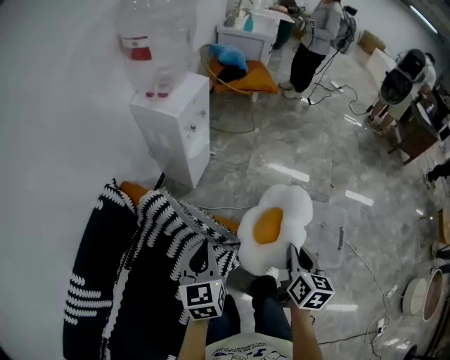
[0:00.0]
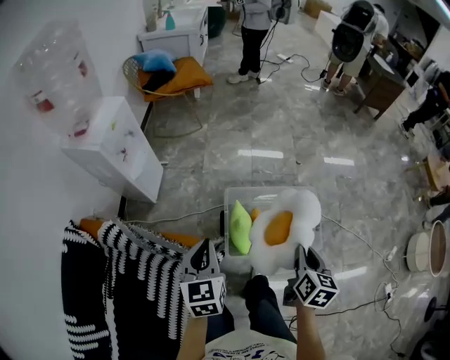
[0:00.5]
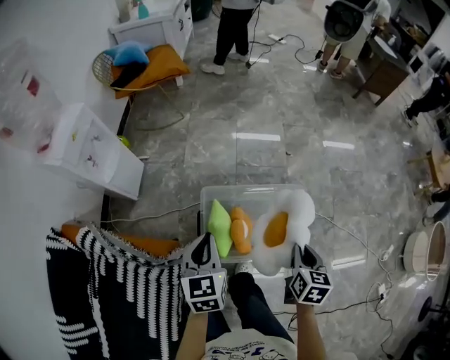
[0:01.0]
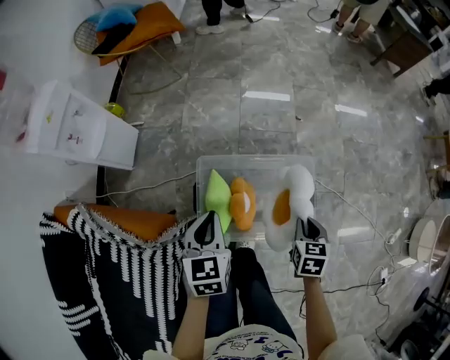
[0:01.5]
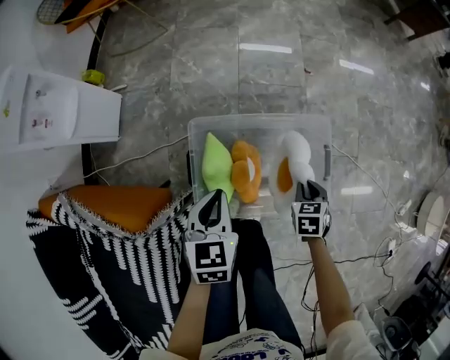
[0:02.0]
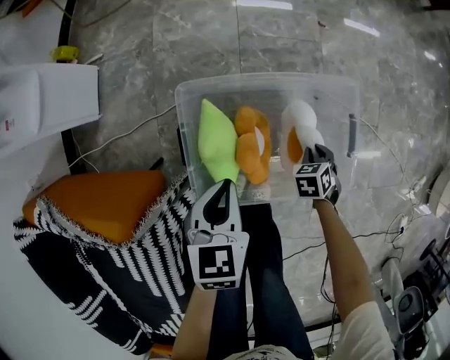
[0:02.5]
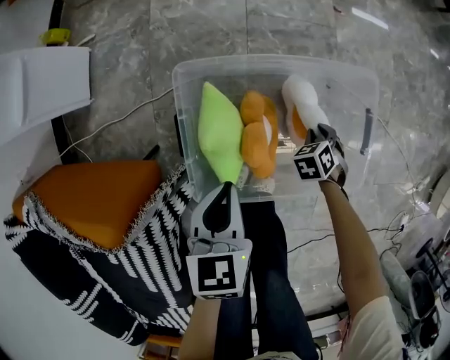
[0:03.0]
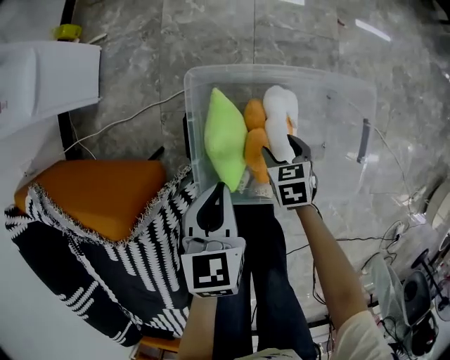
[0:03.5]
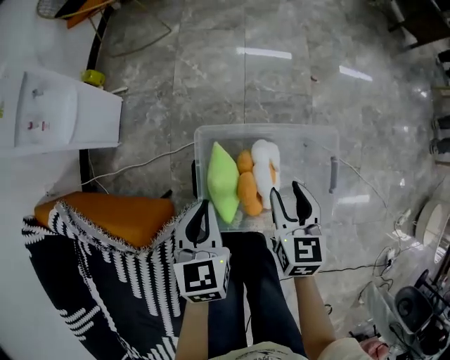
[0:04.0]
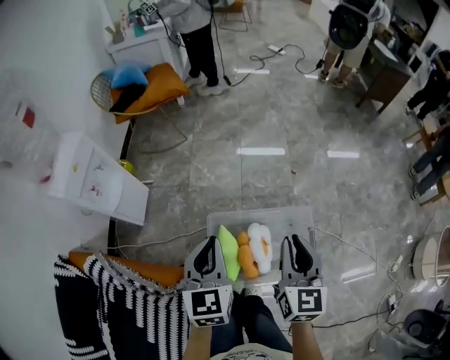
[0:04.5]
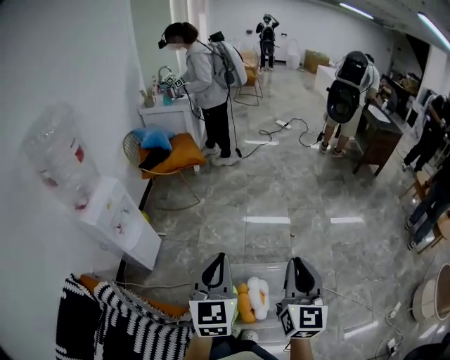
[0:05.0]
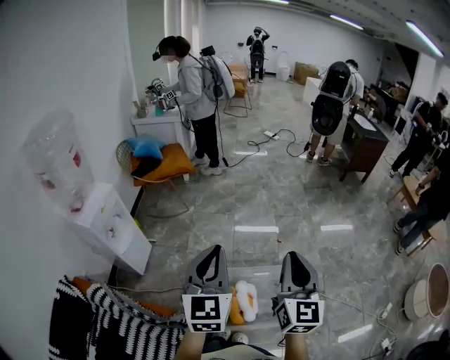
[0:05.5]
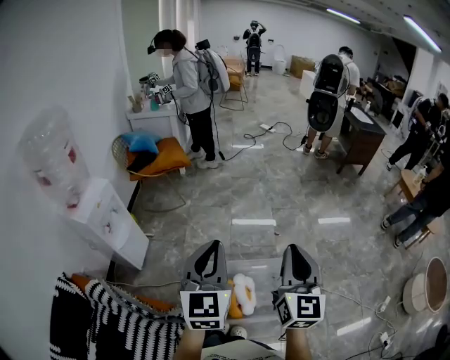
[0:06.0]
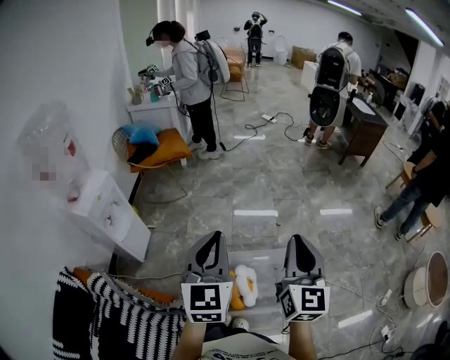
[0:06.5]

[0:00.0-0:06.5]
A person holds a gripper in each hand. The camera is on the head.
0:00.0 to 0:02.0: The pair of grippers is taken approximately 50 cm. The left gripper turns by some 30 degrees; the right gripper tilts its fingers about 40 degrees downward.
0:02.0 to 0:04.5: The left gripper is displaced upward by approximately 30 cm, and rotates about 20 degrees, while the right gripper goes about 40 cm upward, tilts its fingers approximately 50 degrees upward, and opens, then closes once more.
0:04.5 to 0:06.5: The two grippers go approximately 25 cm upward. The left gripper swivels approximately 20 degrees. Meanwhile the right gripper swivels approximately 20 degrees.

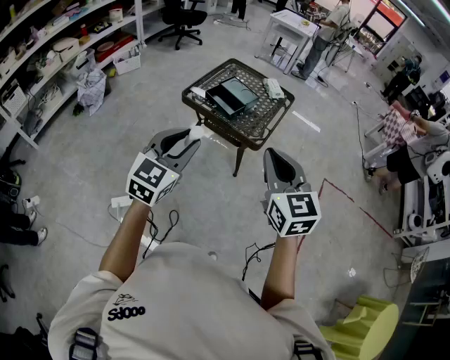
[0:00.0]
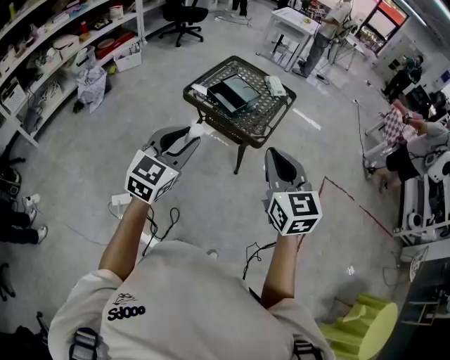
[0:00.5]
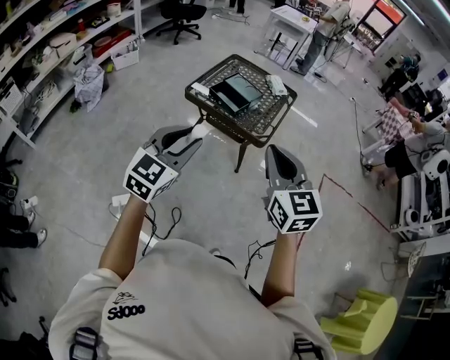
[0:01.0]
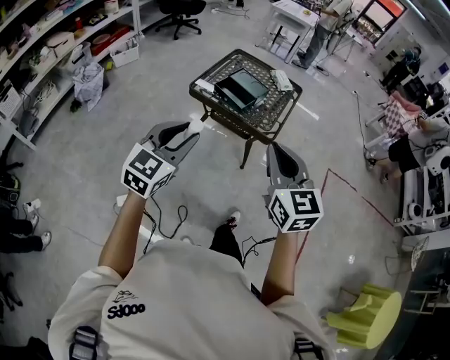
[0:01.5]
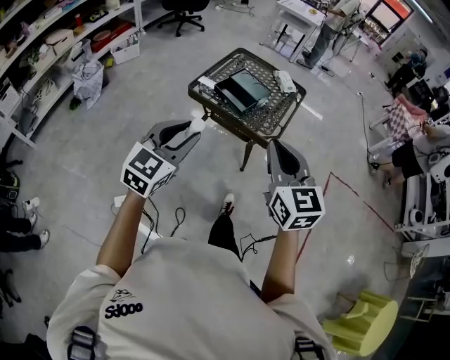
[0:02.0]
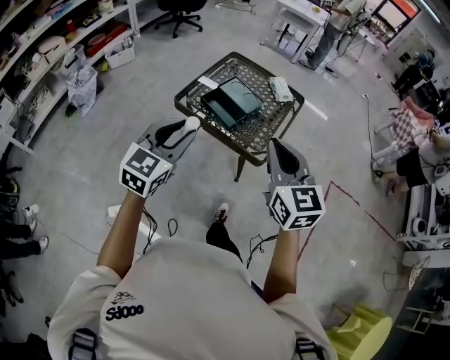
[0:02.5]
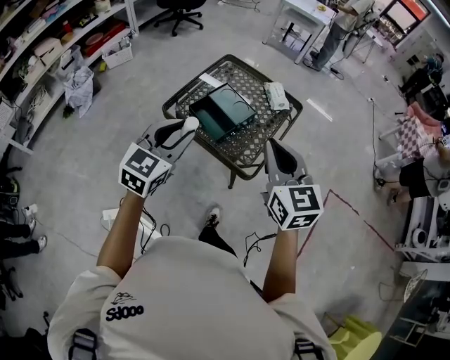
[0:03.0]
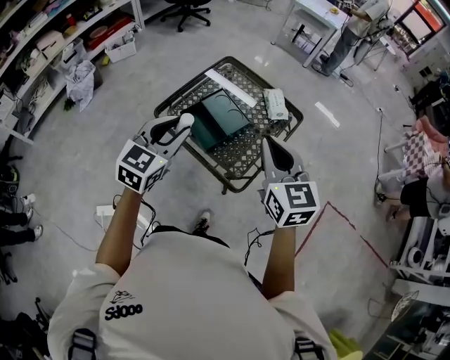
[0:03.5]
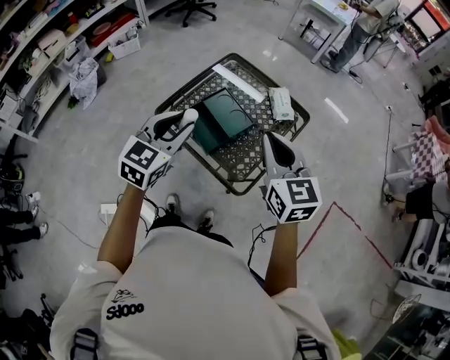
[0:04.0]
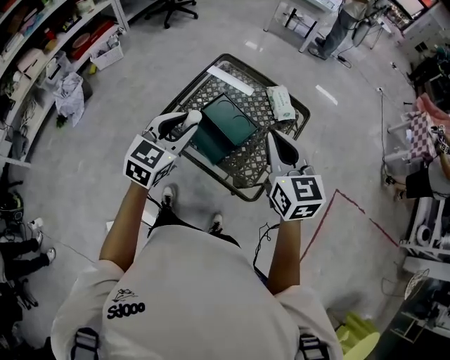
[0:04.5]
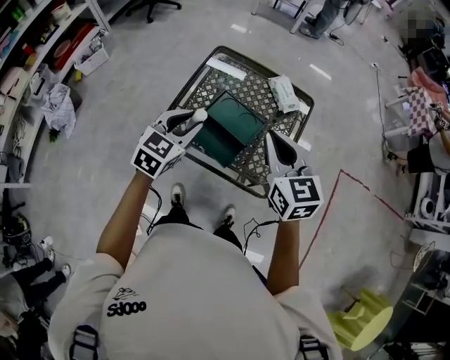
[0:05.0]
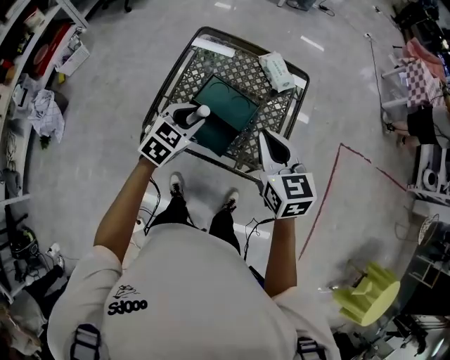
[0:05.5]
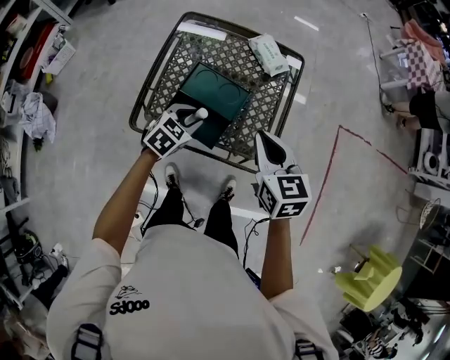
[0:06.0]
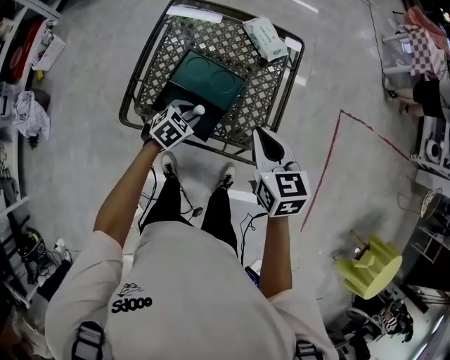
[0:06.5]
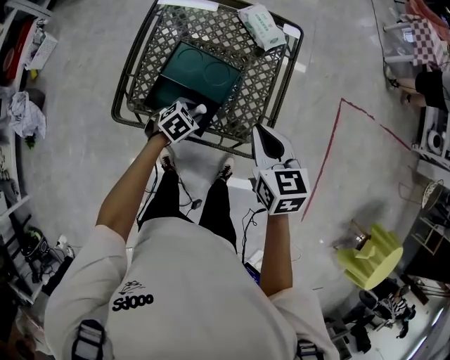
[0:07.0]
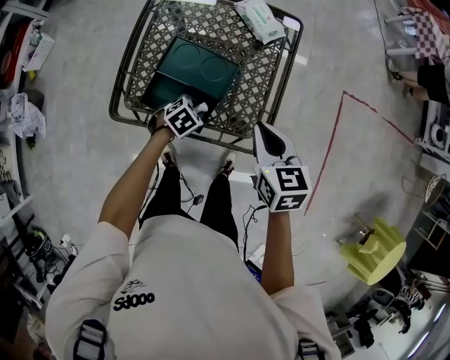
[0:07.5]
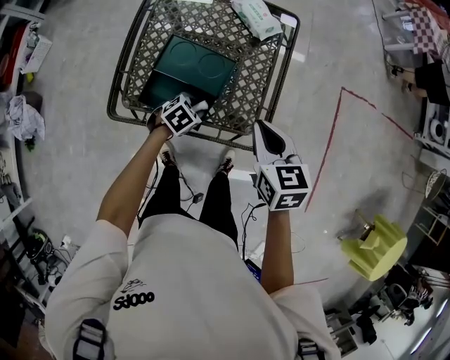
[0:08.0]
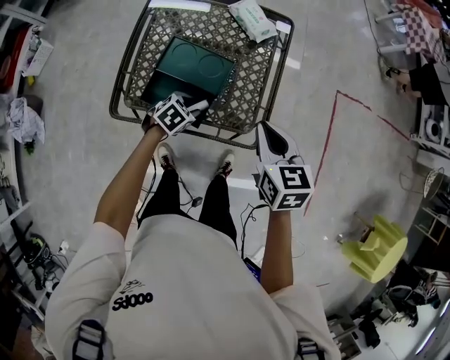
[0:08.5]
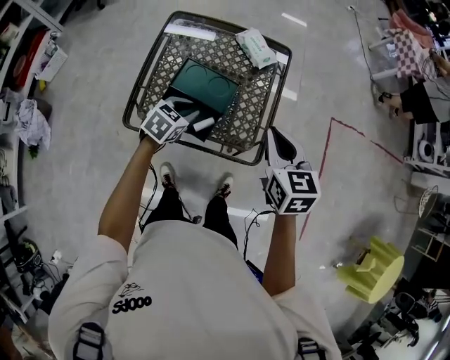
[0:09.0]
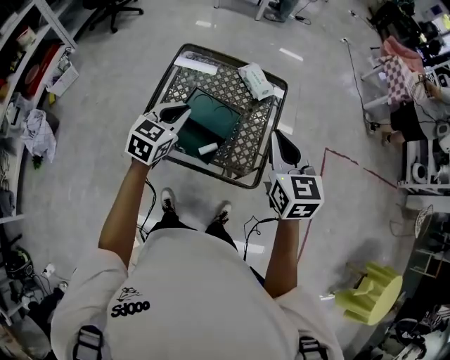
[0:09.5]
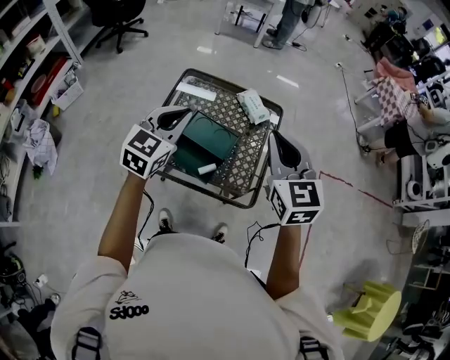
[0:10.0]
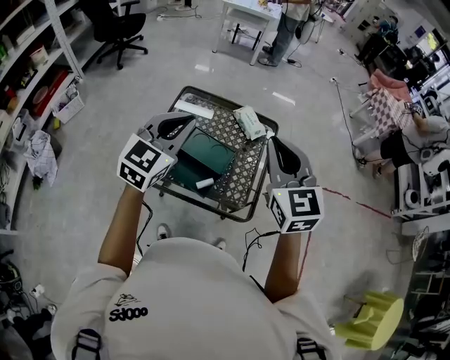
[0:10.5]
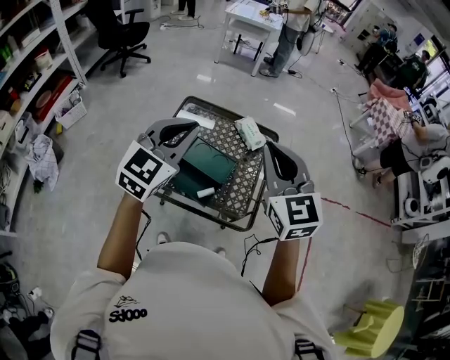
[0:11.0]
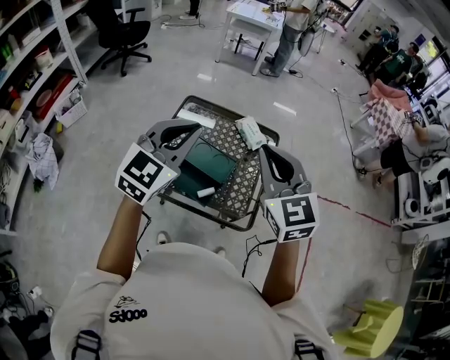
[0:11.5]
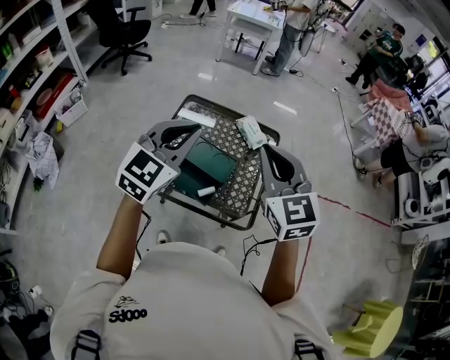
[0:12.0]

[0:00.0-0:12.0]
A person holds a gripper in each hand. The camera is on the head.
0:00.0 to 0:02.0: The left gripper moves to the left and forward, about 10 cm. Meanwhile the right gripper shifts approximately 10 cm forward and to the left.
0:02.0 to 0:04.0: The two grippers go approximately 35 cm forward and to the right.
0:04.0 to 0:06.0: The left gripper moves downward, about 25 cm, and changes its angle by some 50 degrees. Meanwhile the right gripper is displaced downward by roughly 15 cm, and swivels some 30 degrees.
0:06.0 to 0:08.0: The left gripper is displaced downward and to the right by roughly 15 cm, and swivels roughly 20 degrees. The right gripper shifts approximately 5 cm downward.
0:08.0 to 0:10.0: The right gripper heads upward, covering some 25 cm, and turns by about 30 degrees; the left gripper travels upward by some 40 cm, tilts its fingers approximately 50 degrees upward, and closes.
0:10.0 to 0:12.0: The left gripper shifts about 10 cm upward; the right gripper ends up approximately 5 cm from where it was.

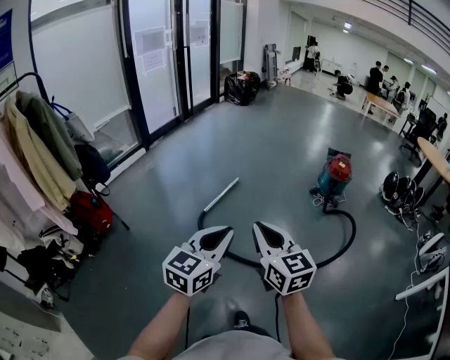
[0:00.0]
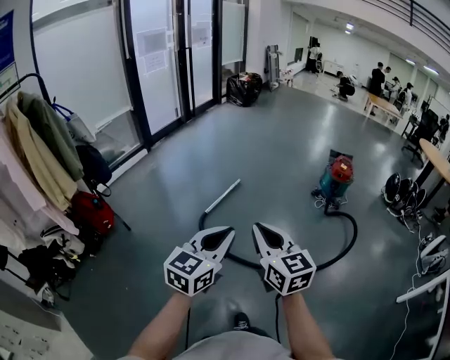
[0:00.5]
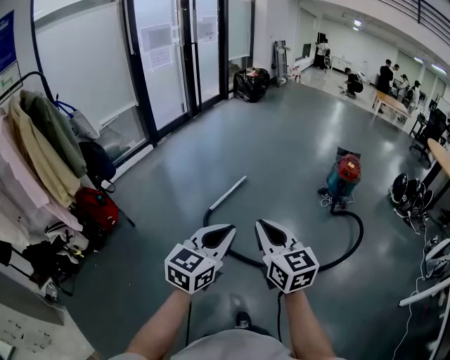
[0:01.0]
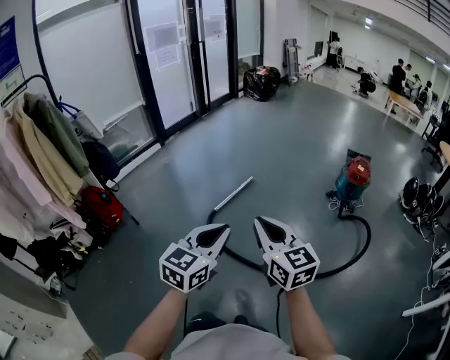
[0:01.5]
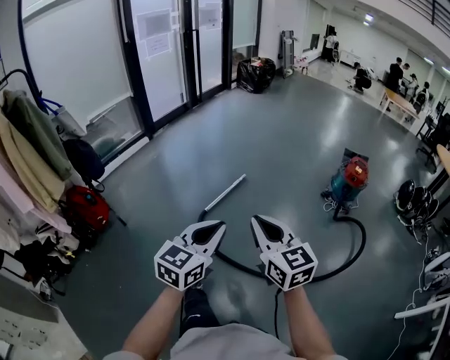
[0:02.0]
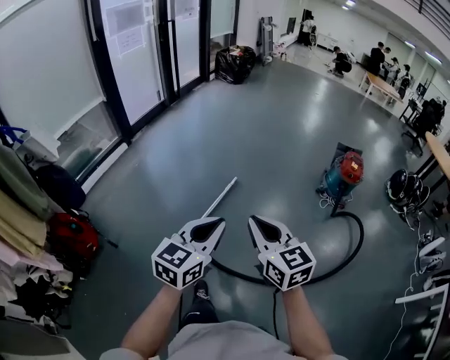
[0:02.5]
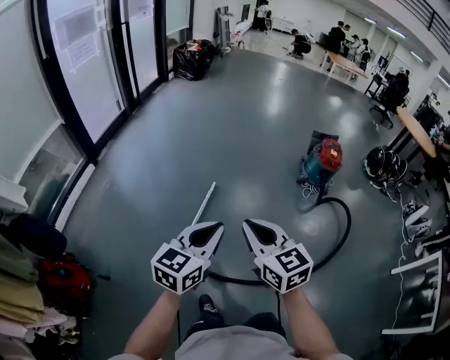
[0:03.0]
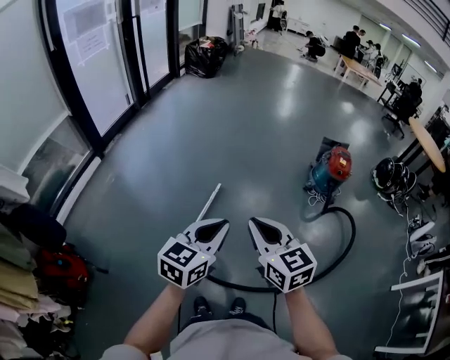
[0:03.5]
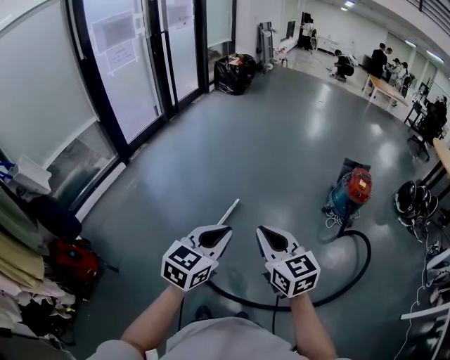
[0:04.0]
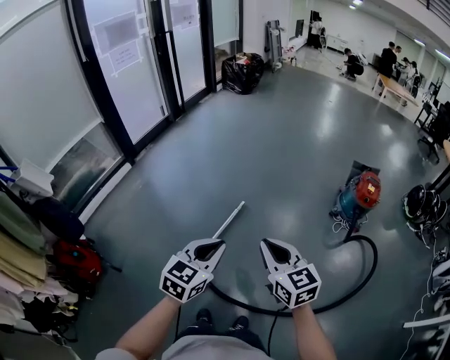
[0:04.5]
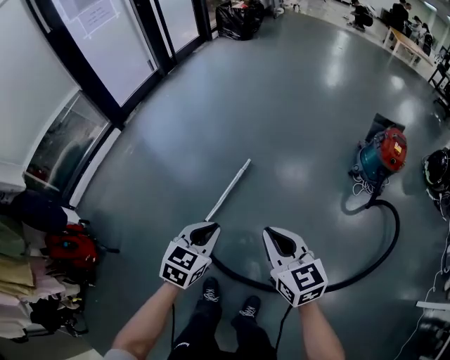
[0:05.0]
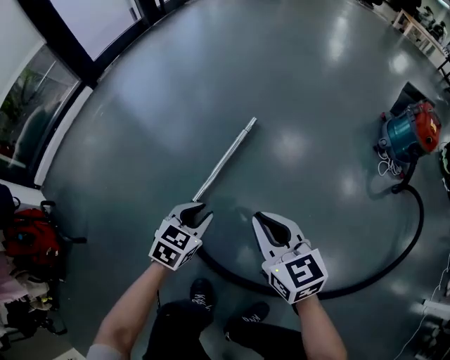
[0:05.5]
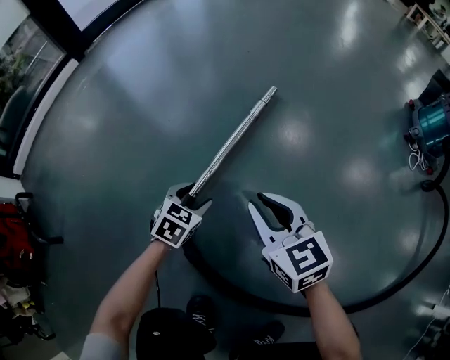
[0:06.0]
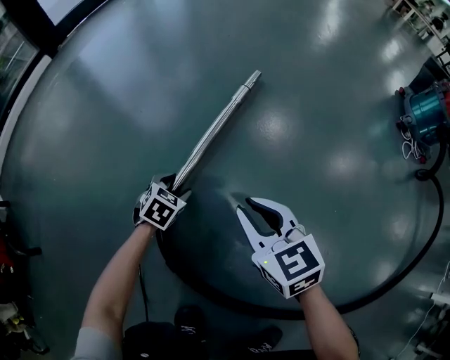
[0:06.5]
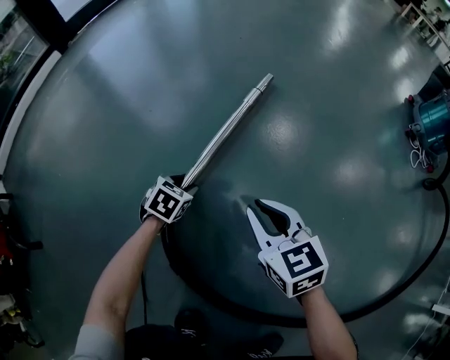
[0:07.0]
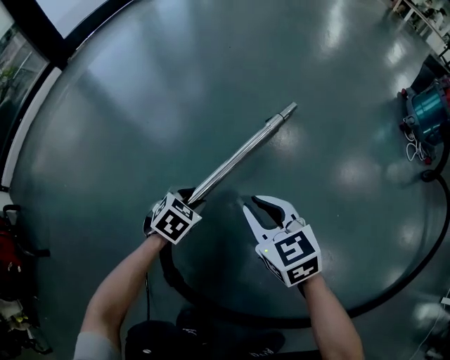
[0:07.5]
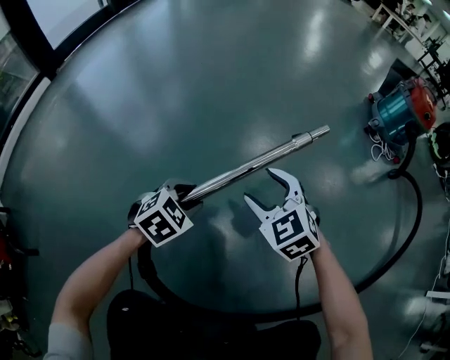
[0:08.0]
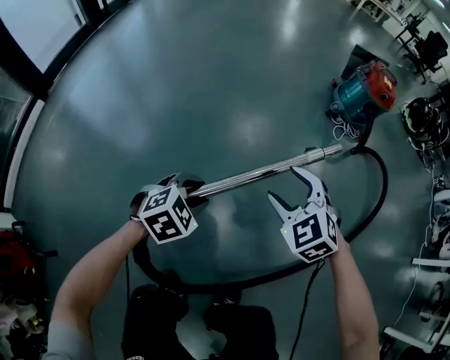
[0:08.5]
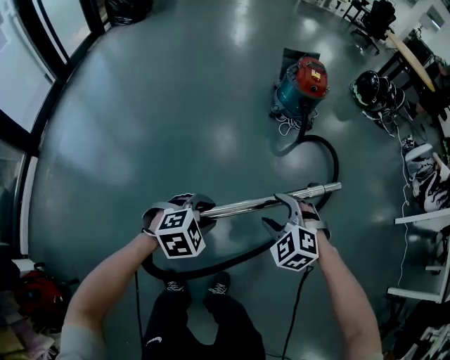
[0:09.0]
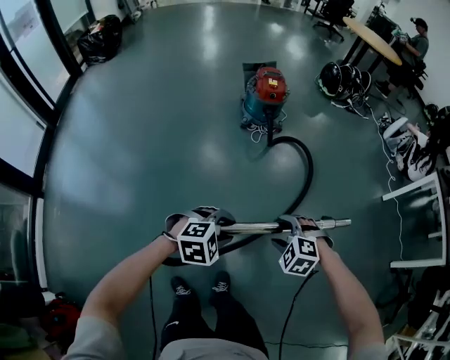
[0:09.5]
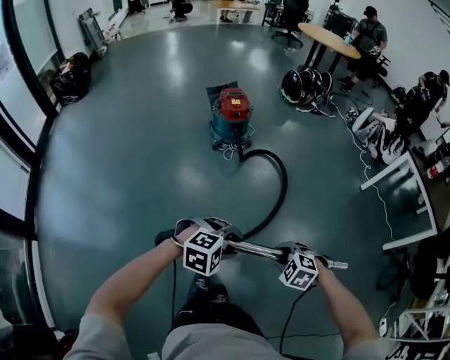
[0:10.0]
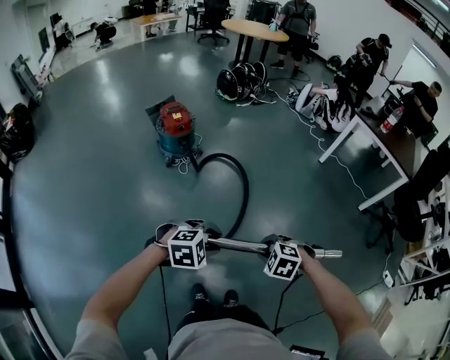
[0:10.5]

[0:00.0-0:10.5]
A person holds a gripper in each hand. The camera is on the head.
0:00.0 to 0:02.0: The two grippers go roughly 20 cm forward.
0:02.0 to 0:04.0: Both grippers move forward, approximately 35 cm.
0:04.0 to 0:06.5: Both grippers move downward, some 90 cm. The left gripper points its fingers some 40 degrees further downward, and opens, while the right gripper swivels roughly 20 degrees.
0:06.5 to 0:08.5: The two grippers go some 35 cm upward. The left gripper turns by approximately 40 degrees. Meanwhile the right gripper changes its angle by some 40 degrees, and opens.
0:08.5 to 0:10.5: The left gripper moves upward, approximately 50 cm, and rotates around the line of its fingers by about 60 degrees, clockwise from behind, while the right gripper changes place by roughly 50 cm, swivels some 40 degrees, and closes.
